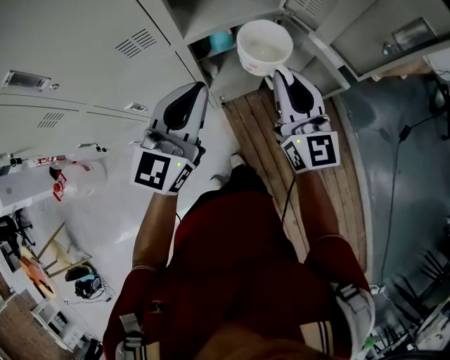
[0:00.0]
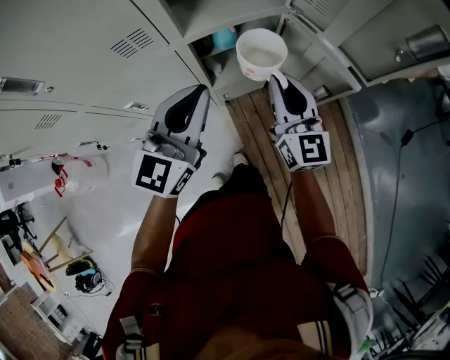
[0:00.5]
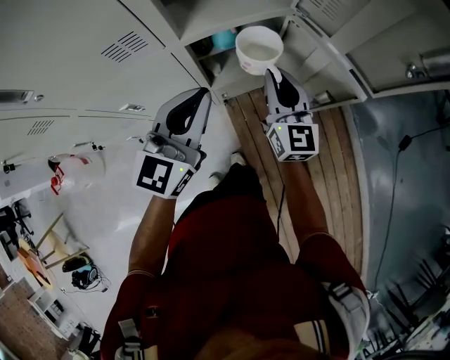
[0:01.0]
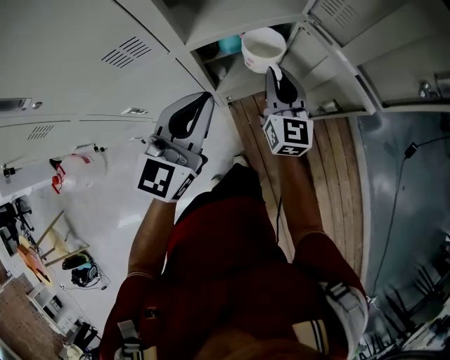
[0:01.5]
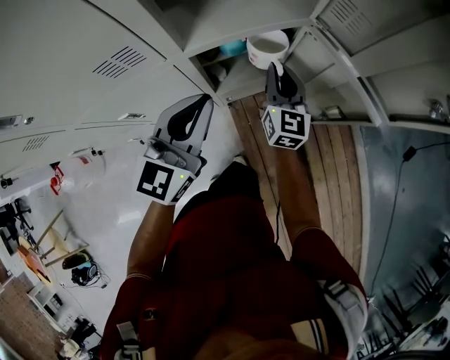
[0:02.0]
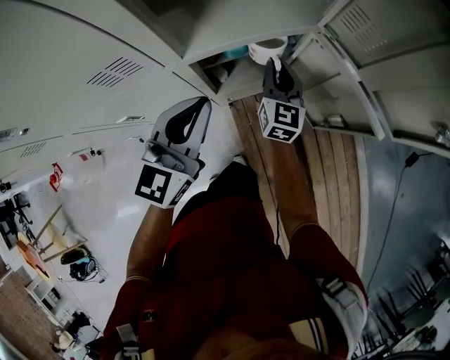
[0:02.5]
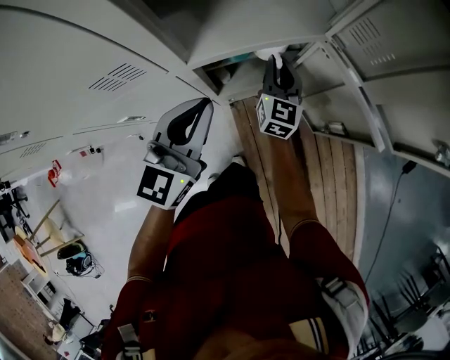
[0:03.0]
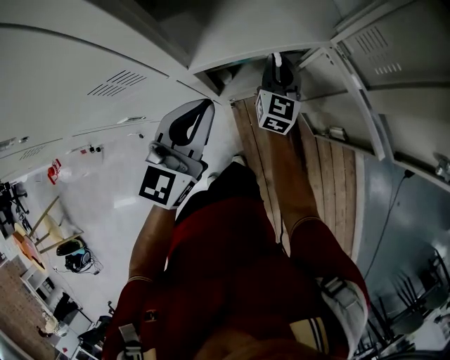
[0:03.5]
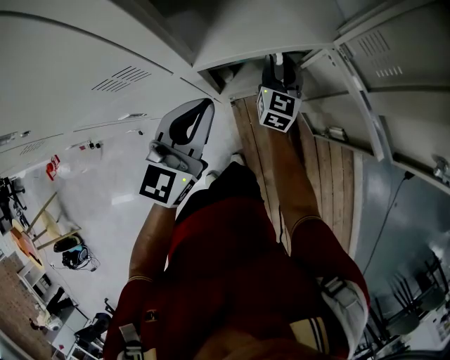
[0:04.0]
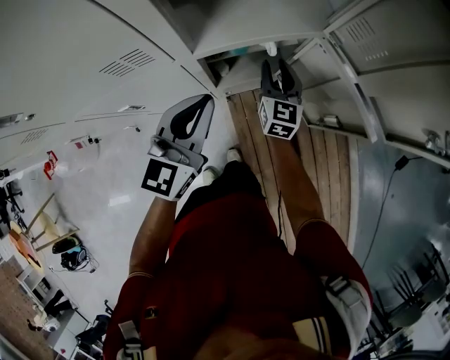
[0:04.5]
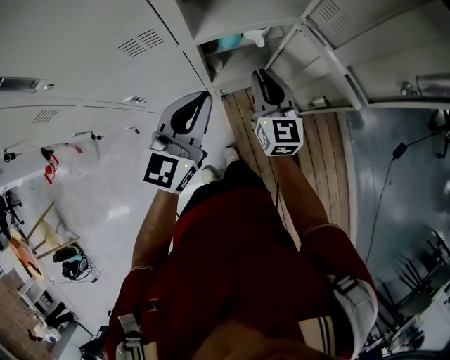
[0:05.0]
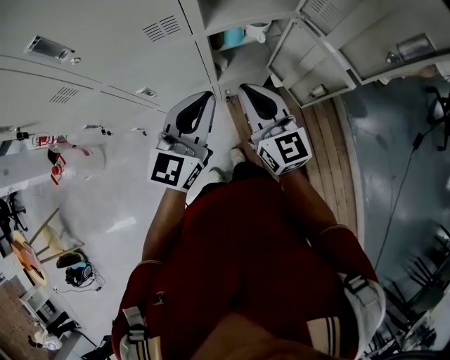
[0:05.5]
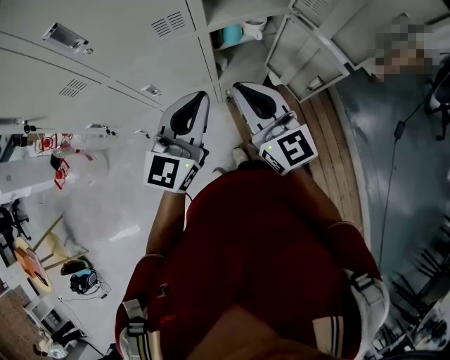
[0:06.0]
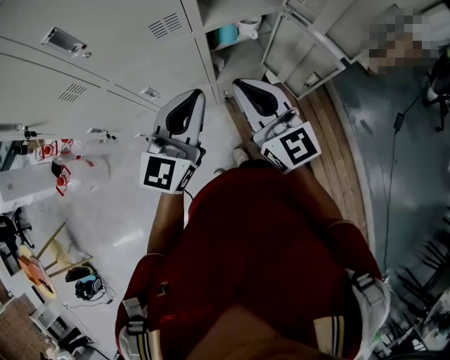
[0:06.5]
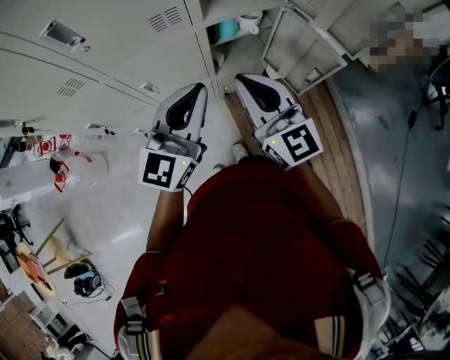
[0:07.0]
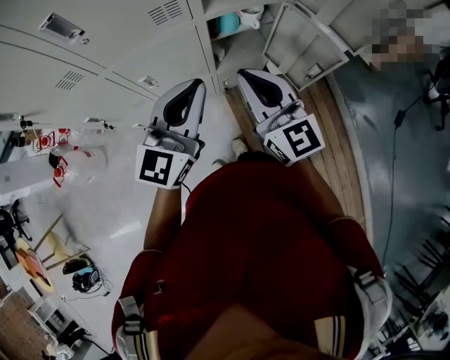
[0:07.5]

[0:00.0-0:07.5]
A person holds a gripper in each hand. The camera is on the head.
0:00.0 to 0:02.0: The left gripper heads downward and forward, covering about 10 cm. Meanwhile the right gripper is displaced downward and forward by about 20 cm.
0:02.0 to 0:04.0: The right gripper is displaced forward and downward by some 10 cm.
0:04.0 to 0:05.5: The right gripper goes roughly 35 cm backward and upward, rotates approximately 30 degrees, and closes up, while the left gripper goes about 15 cm backward and upward.
0:05.5 to 0:07.5: The grippers both shift upward and backward by roughly 10 cm.

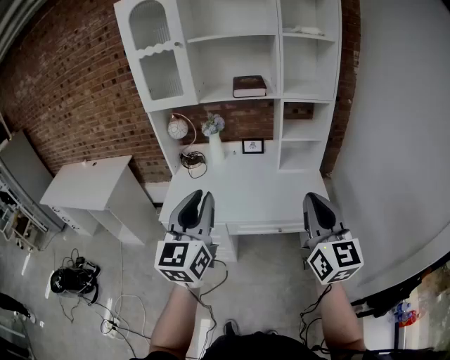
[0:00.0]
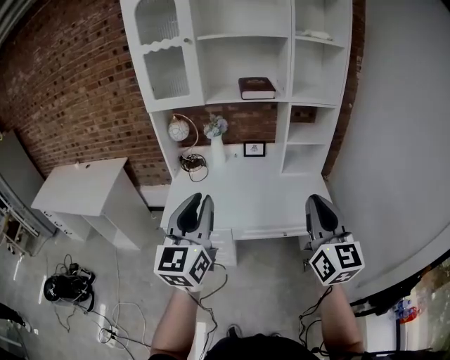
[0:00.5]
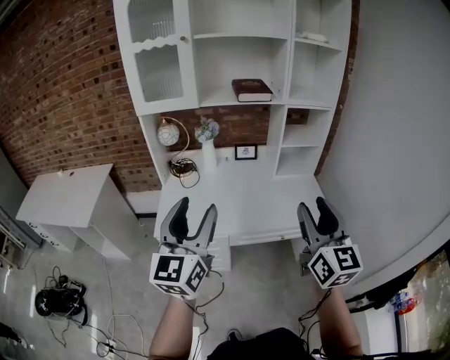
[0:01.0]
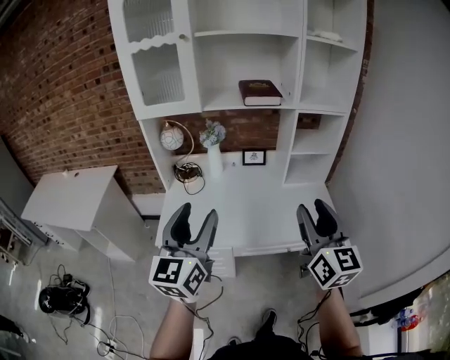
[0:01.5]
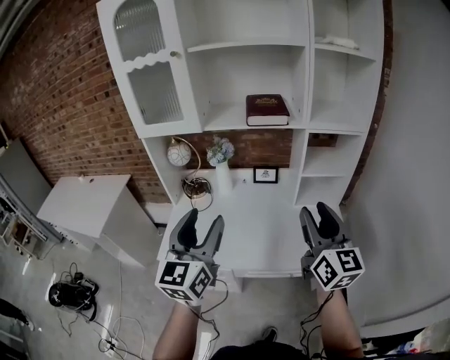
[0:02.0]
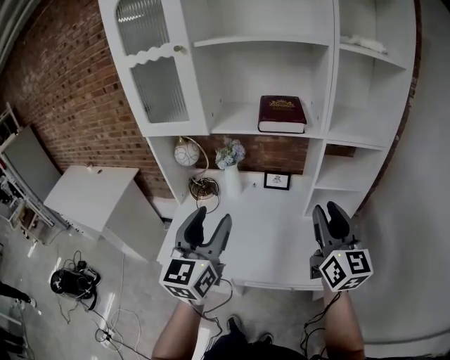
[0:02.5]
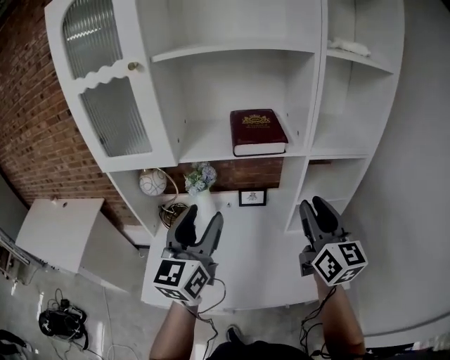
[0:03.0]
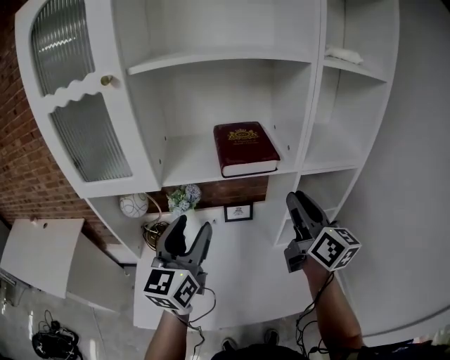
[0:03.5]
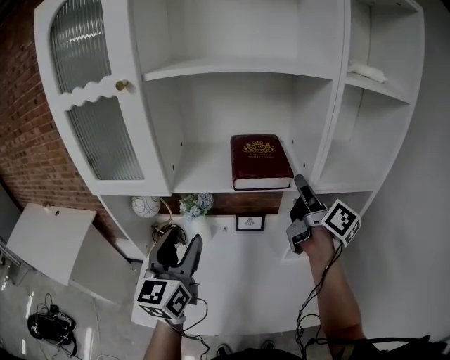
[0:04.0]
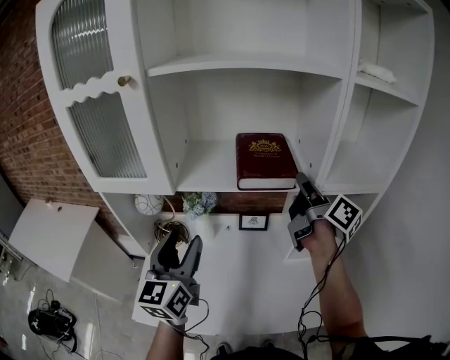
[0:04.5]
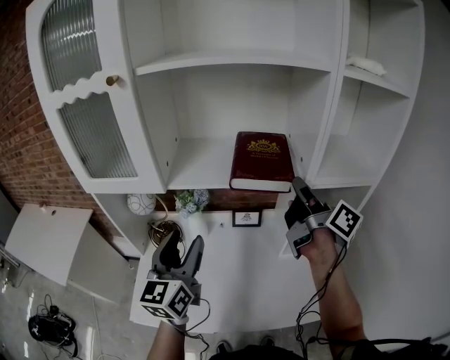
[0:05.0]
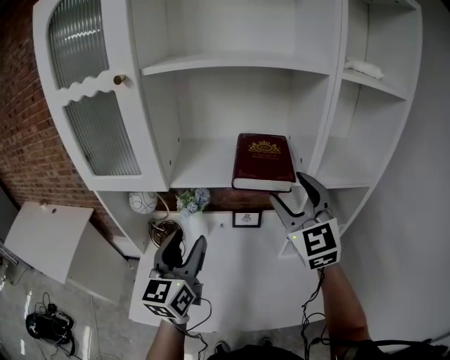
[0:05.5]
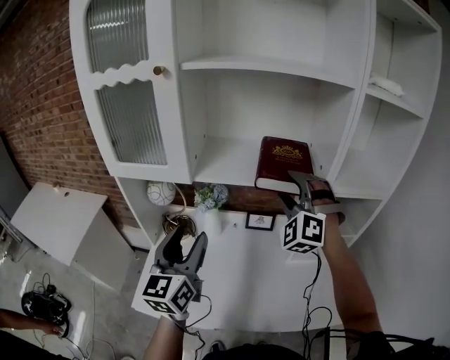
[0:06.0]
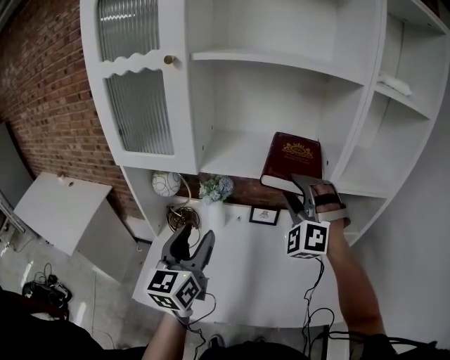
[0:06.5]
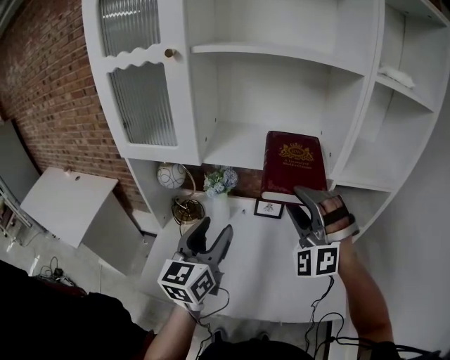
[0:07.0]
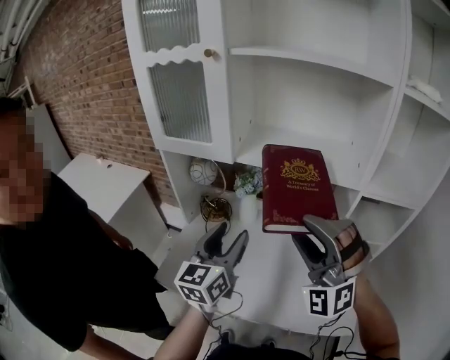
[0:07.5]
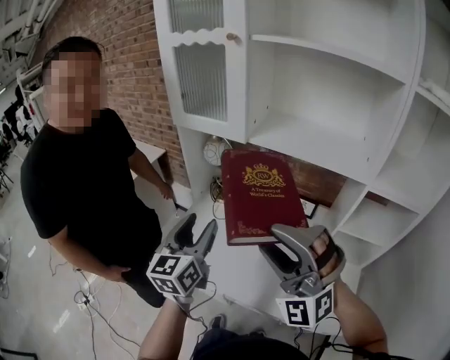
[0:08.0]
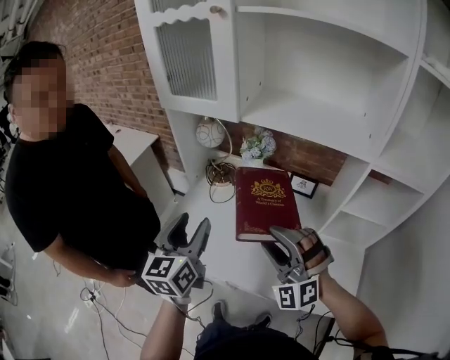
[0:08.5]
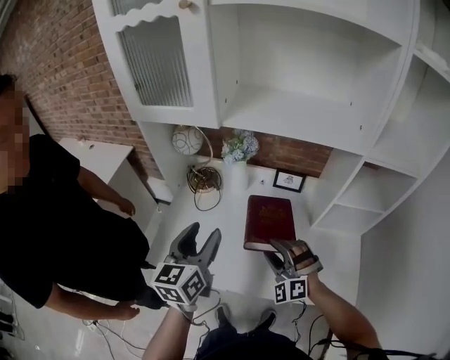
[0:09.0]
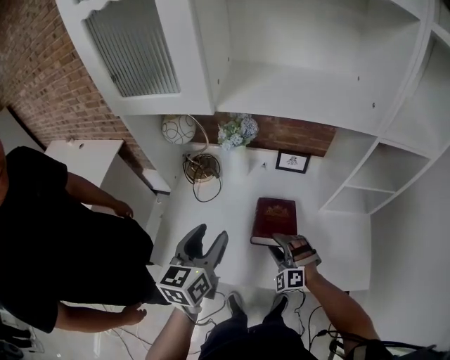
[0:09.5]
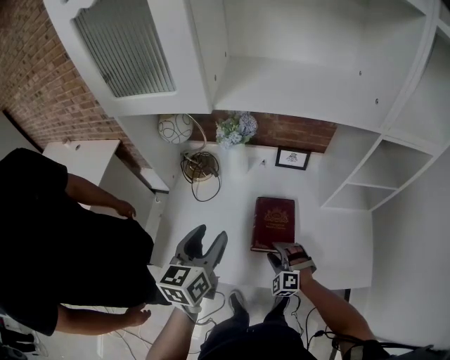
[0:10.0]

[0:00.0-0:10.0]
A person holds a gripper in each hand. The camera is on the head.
0:00.0 to 0:02.0: The grippers both shift forward by approximately 25 cm. The left gripper opens its fingers; the right gripper opens up.
0:02.0 to 0:04.0: Both grippers move forward, about 30 cm. The right gripper twists roughly 40 degrees clockwise, seen from behind.
0:04.0 to 0:06.0: The right gripper heads to the left, covering approximately 10 cm, twists some 130 degrees counterclockwise, seen from behind, and opens.
0:06.0 to 0:08.0: The right gripper moves some 30 cm, and swivels approximately 50 degrees, while the left gripper changes place by about 15 cm.
0:08.0 to 0:10.0: The right gripper travels downward by roughly 50 cm, and tips its fingers downward by approximately 40 degrees, while the left gripper shifts about 15 cm downward and forward, and turns by about 30 degrees.

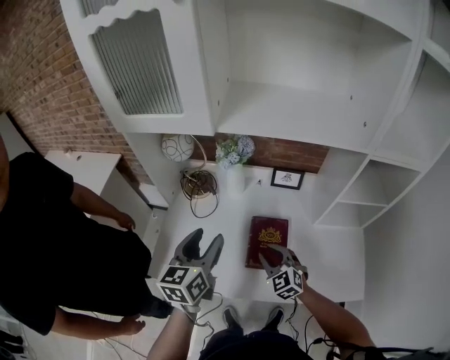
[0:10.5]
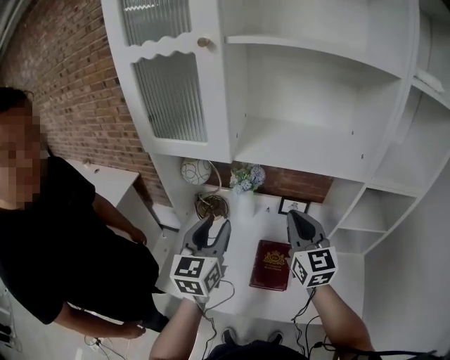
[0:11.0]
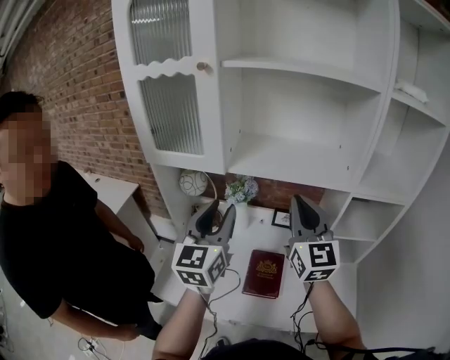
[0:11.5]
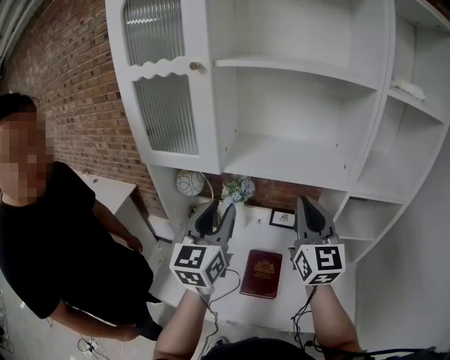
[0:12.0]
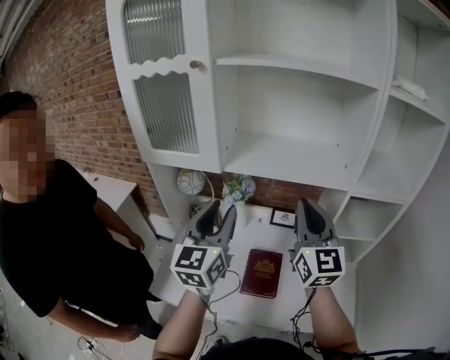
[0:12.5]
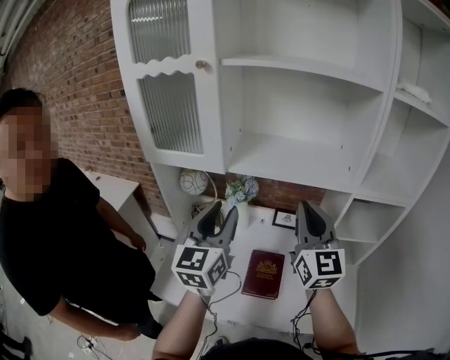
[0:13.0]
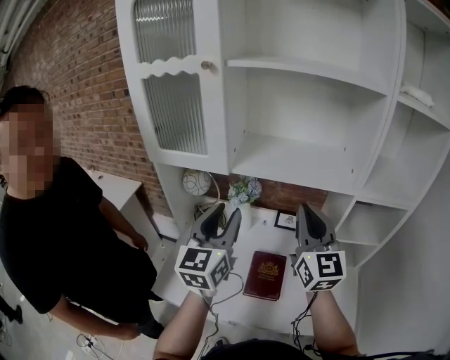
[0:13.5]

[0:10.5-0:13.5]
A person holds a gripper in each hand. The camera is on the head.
0:10.5 to 0:12.0: The left gripper is displaced upward by some 20 cm, rotates approximately 30 degrees, and closes up. Meanwhile the right gripper is displaced upward by about 40 cm, tilts its fingers some 40 degrees upward, and closes up.
0:12.0 to 0:13.5: There are only small adjustments of the grippers.

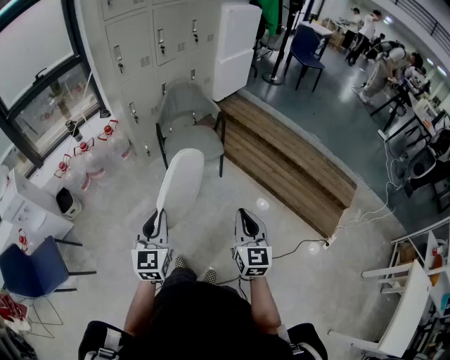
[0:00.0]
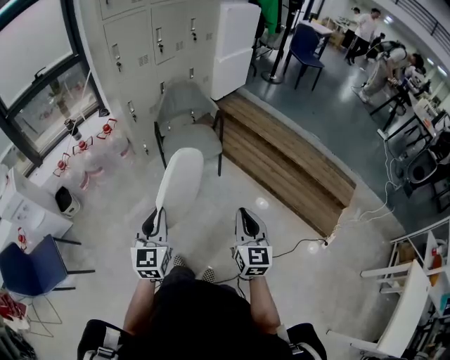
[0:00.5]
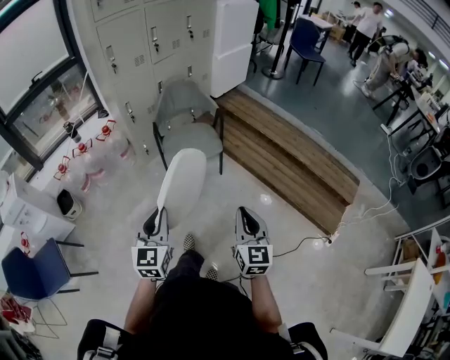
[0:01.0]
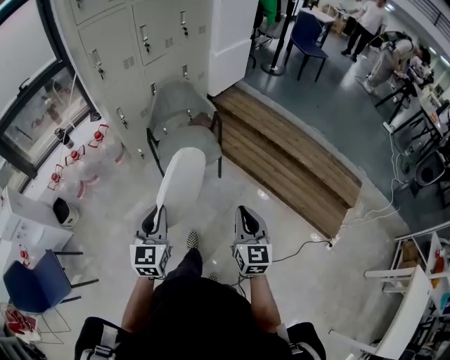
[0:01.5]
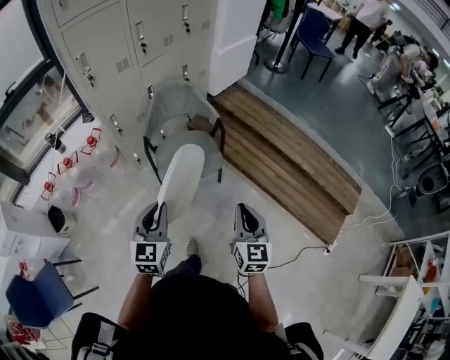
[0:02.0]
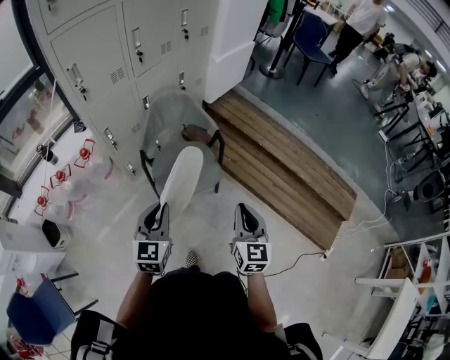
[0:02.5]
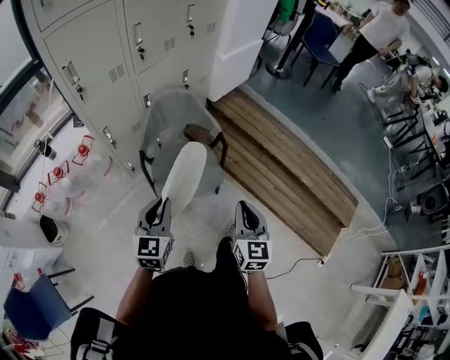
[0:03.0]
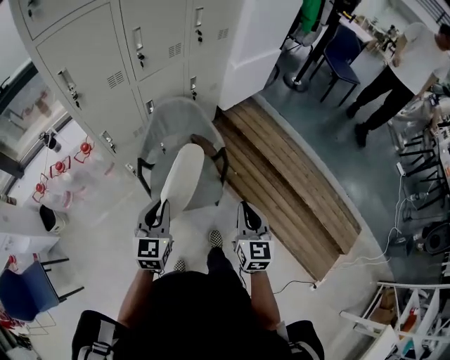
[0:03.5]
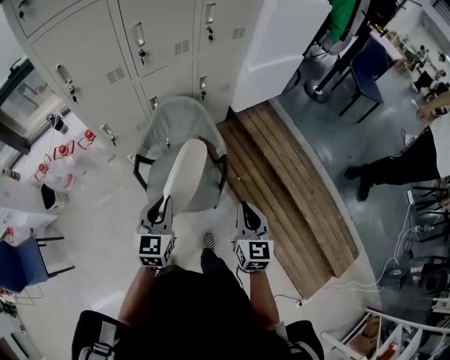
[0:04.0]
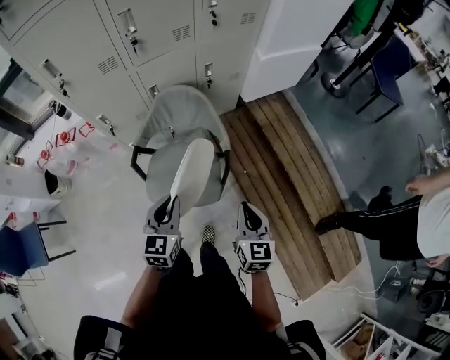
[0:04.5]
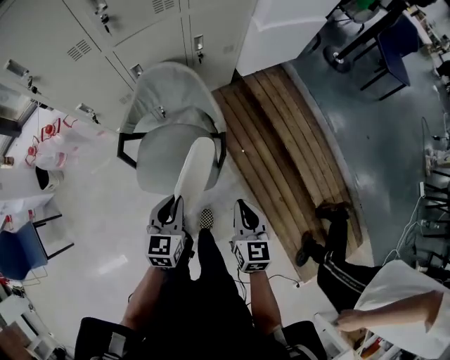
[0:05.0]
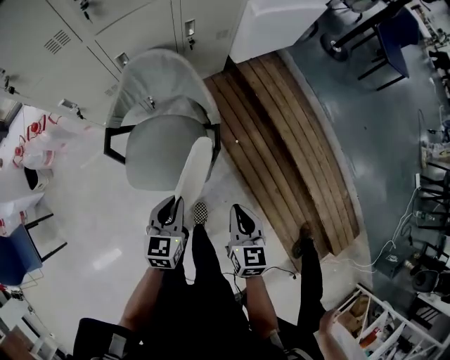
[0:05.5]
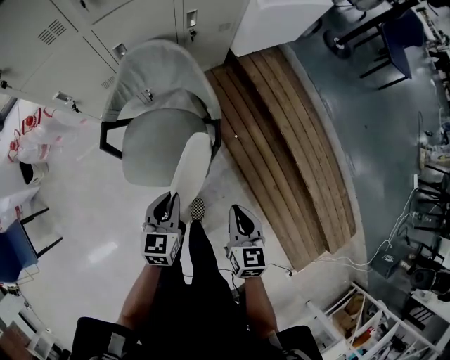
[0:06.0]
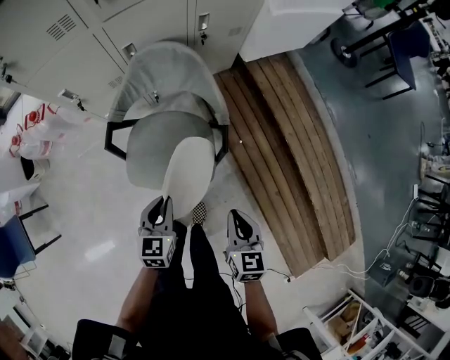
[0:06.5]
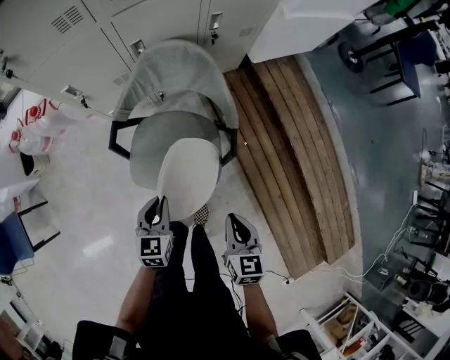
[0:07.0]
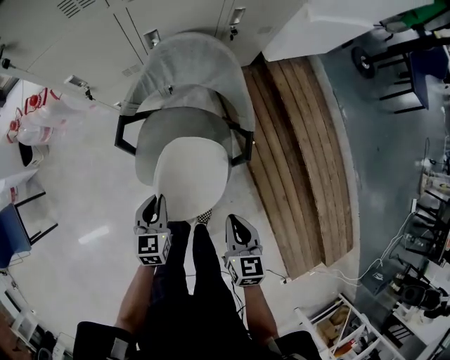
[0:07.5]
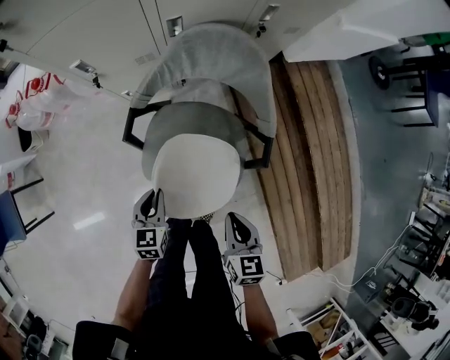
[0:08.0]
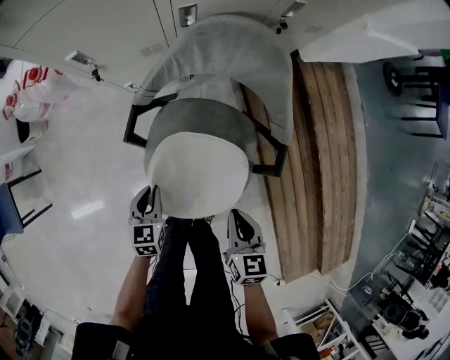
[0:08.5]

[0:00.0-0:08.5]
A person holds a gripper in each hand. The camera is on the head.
0:00.0 to 0:02.0: Both grippers move forward, roughly 30 cm.
0:02.0 to 0:04.0: Both grippers move forward, about 35 cm.
0:04.0 to 0:06.5: Both grippers travel together downward, some 20 cm.
0:06.5 to 0:08.5: The right gripper goes roughly 20 cm to the left, downward and forward, while the left gripper goes some 25 cm to the left and downward.
